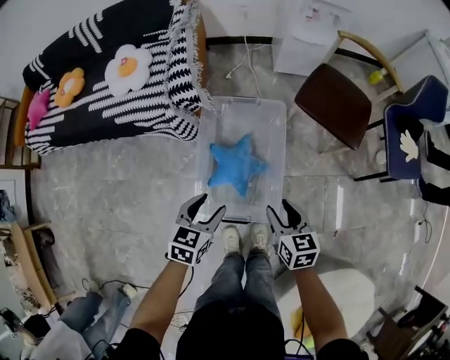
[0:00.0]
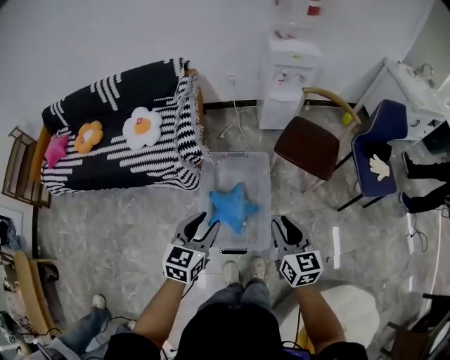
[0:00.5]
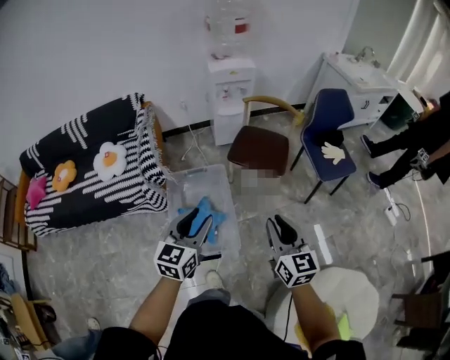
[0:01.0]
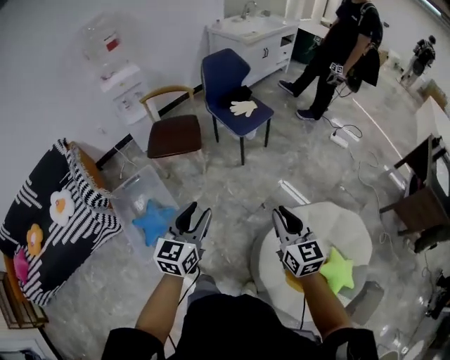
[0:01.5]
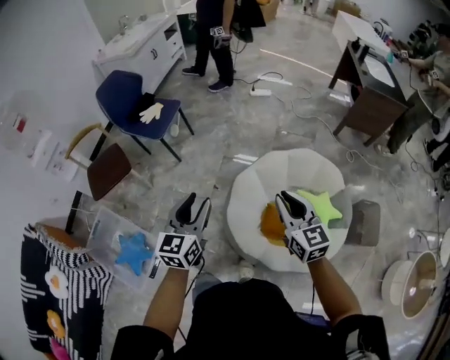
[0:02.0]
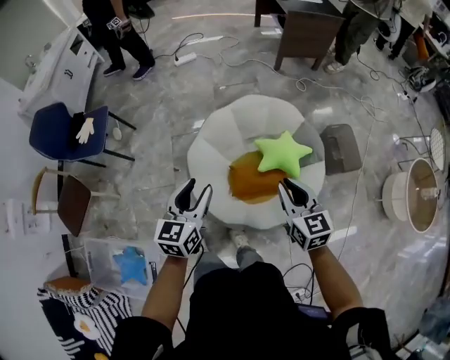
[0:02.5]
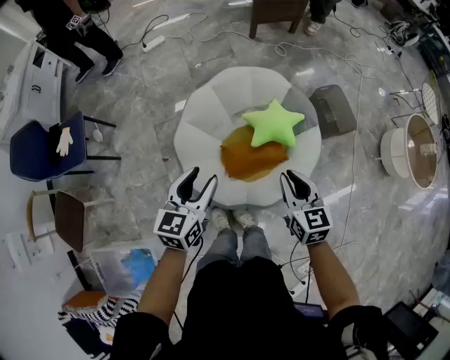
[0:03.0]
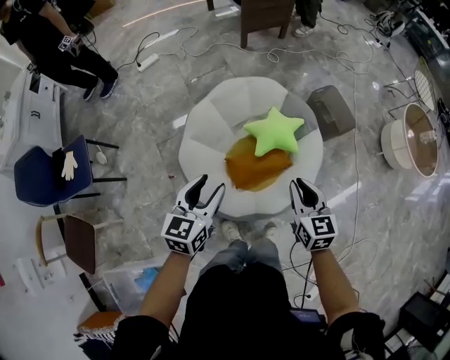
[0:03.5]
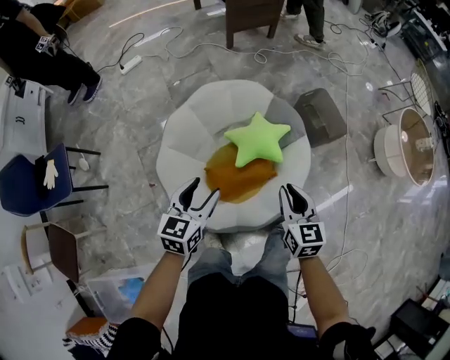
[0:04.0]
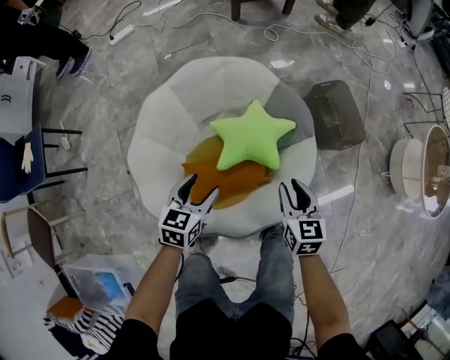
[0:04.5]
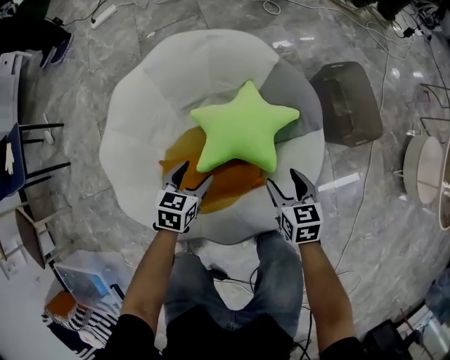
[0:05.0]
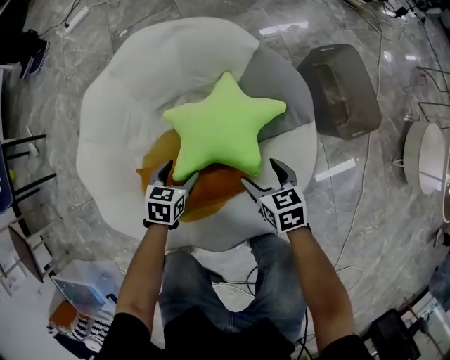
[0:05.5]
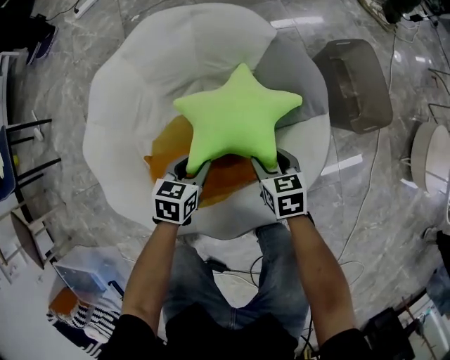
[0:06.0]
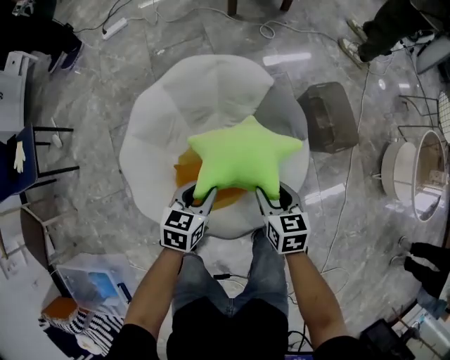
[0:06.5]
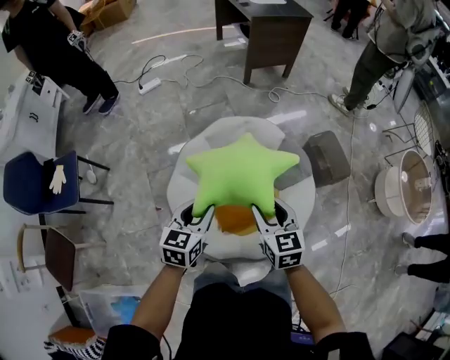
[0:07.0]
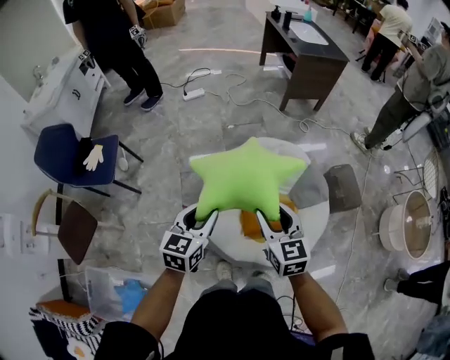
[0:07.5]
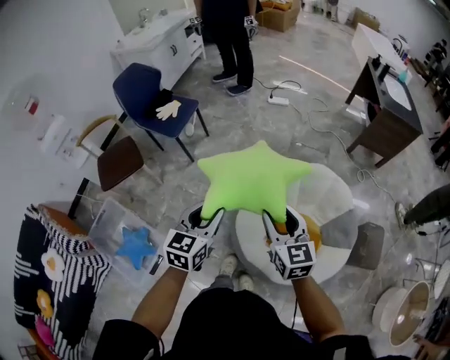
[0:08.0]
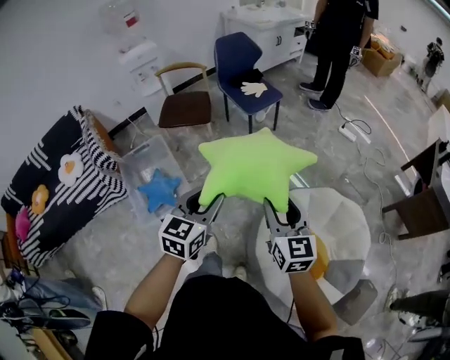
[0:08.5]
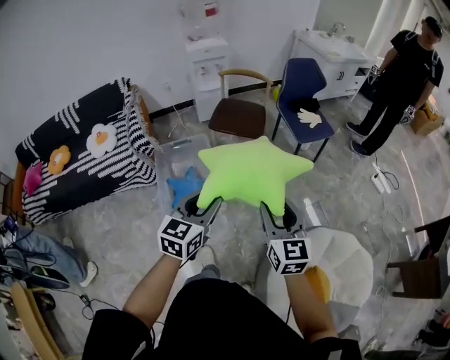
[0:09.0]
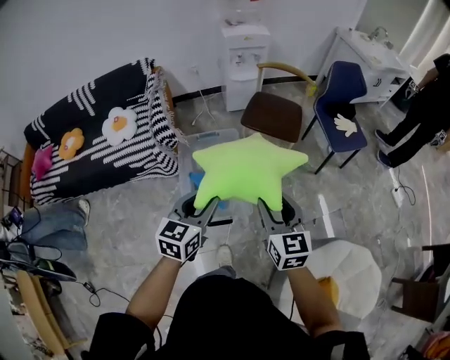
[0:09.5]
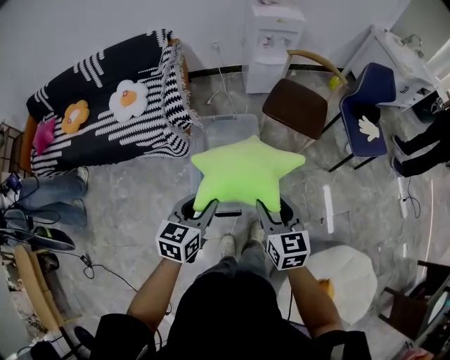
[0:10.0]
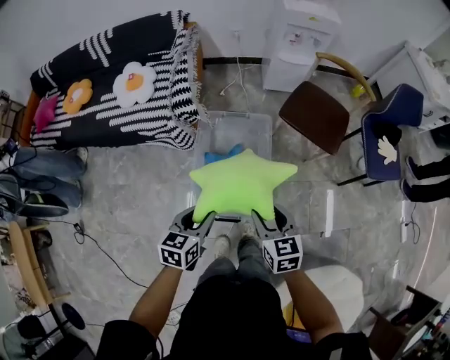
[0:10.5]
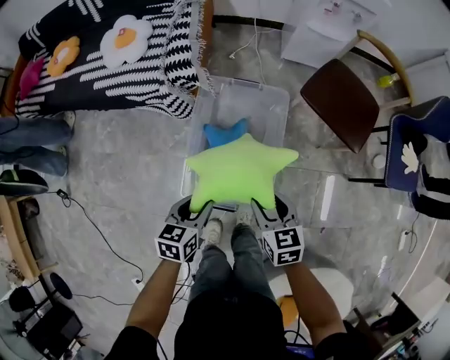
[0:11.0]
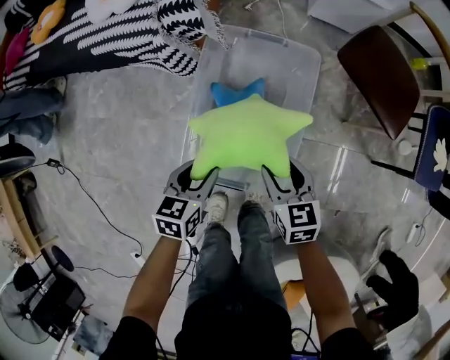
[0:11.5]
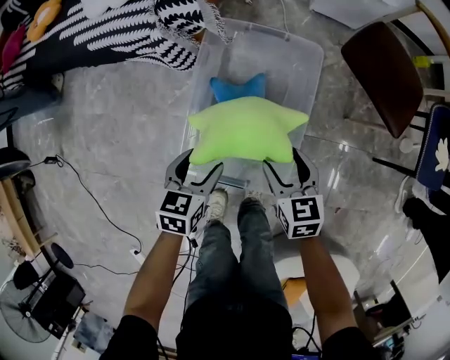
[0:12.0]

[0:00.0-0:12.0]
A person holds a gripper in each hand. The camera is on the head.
0:00.0 to 0:02.0: The pair of grippers is taken some 70 cm. The left gripper tips its fingers upward by roughly 30 degrees. Meanwhile the right gripper swivels roughly 70 degrees, and closes.
0:02.0 to 0:04.0: The right gripper changes place by some 35 cm, and swivels about 50 degrees; the left gripper ends up approximately 35 cm from where it was, and turns by approximately 50 degrees.
0:04.0 to 0:06.0: The two grippers go roughly 40 cm downward. The left gripper rotates roughly 30 degrees, while the right gripper changes its angle by roughly 30 degrees, and opens.
0:06.0 to 0:08.0: Both grippers are carried approximately 50 cm. Both grippers travel together upward, roughly 60 cm. The left gripper angles its fingers upward, by roughly 30 degrees. The right gripper tips its fingers upward by approximately 40 degrees.
0:08.0 to 0:10.0: Both grippers are carried about 60 cm. The right gripper swivels some 60 degrees. The left gripper rotates about 60 degrees.
0:10.0 to 0:12.0: The two grippers go some 35 cm downward. The right gripper changes its angle by roughly 30 degrees; the left gripper changes its angle by some 30 degrees, and opens.

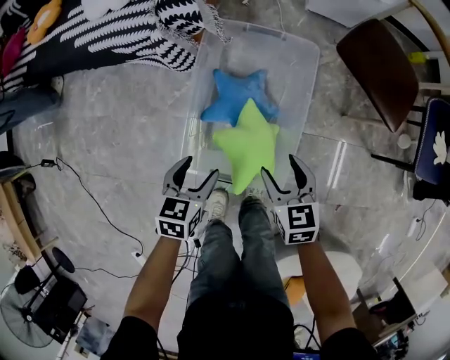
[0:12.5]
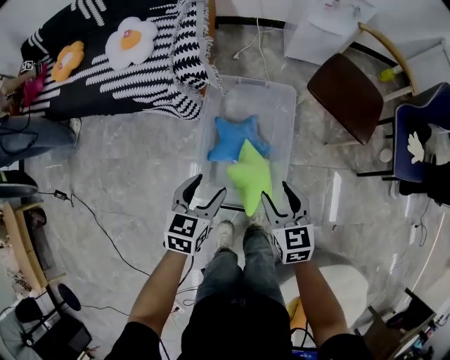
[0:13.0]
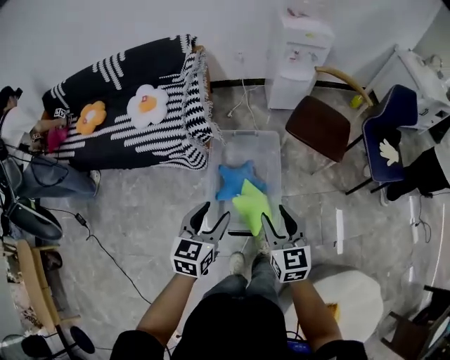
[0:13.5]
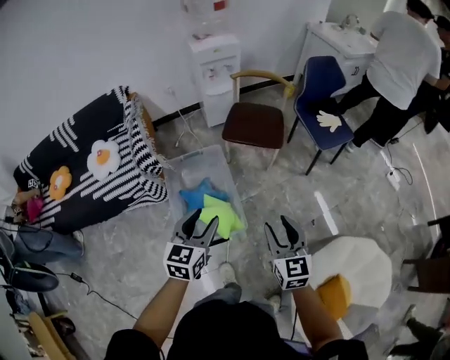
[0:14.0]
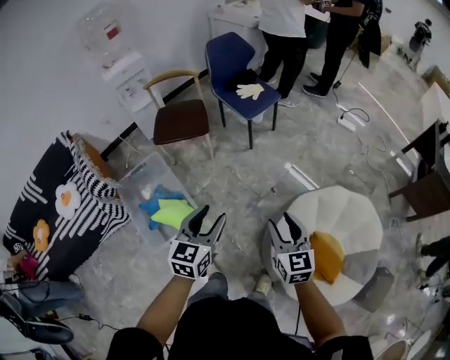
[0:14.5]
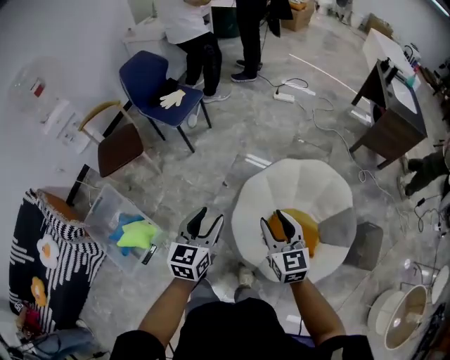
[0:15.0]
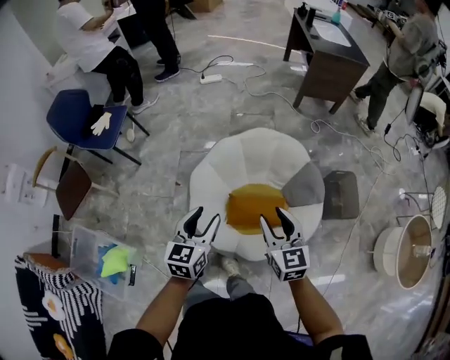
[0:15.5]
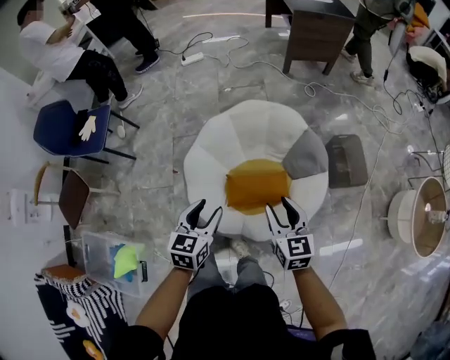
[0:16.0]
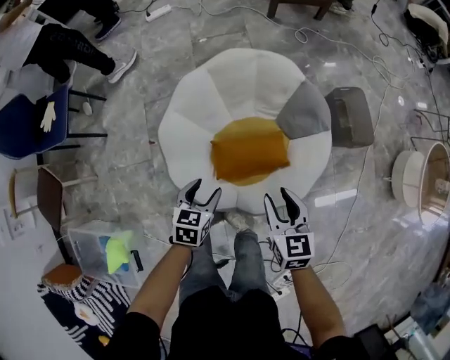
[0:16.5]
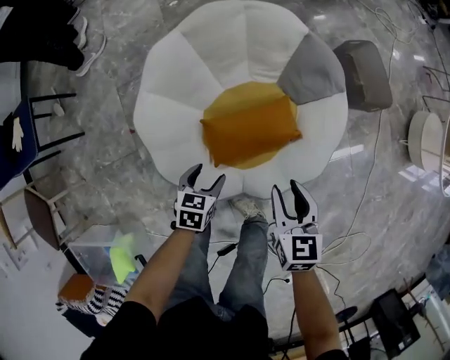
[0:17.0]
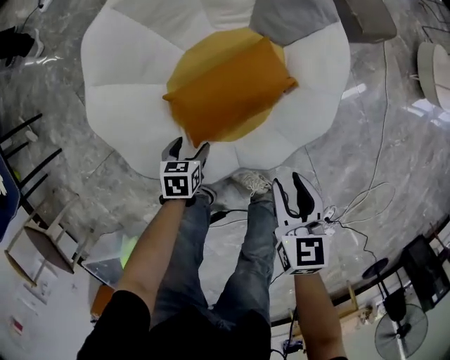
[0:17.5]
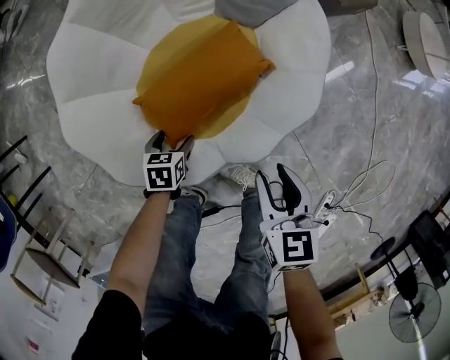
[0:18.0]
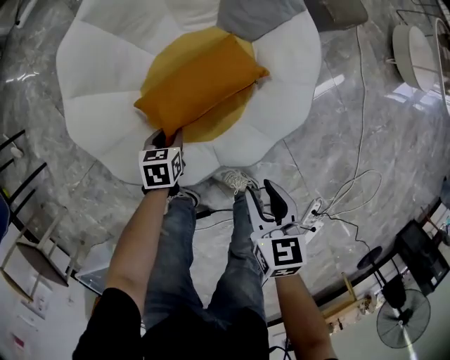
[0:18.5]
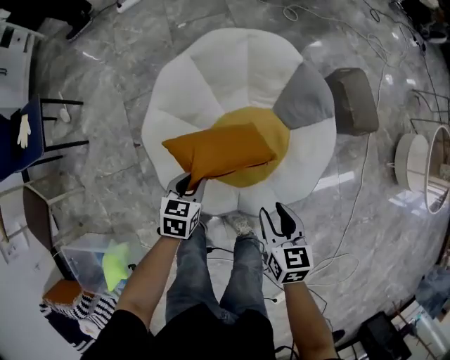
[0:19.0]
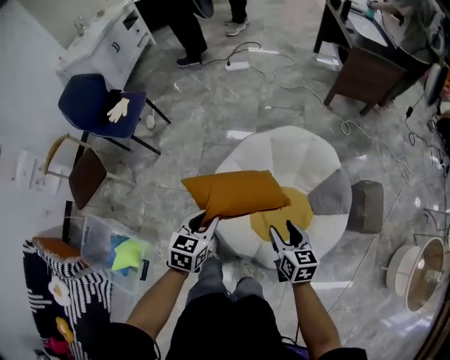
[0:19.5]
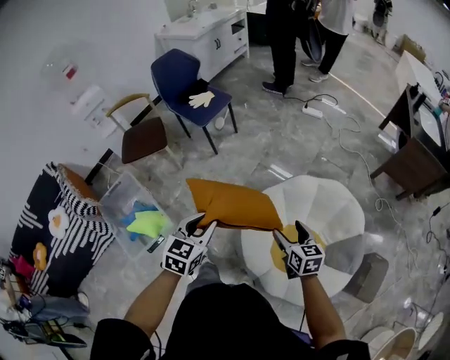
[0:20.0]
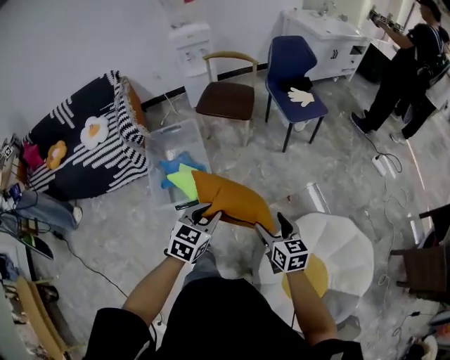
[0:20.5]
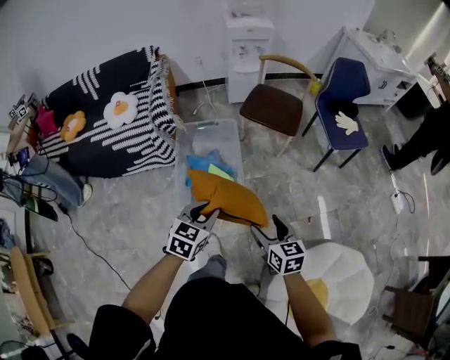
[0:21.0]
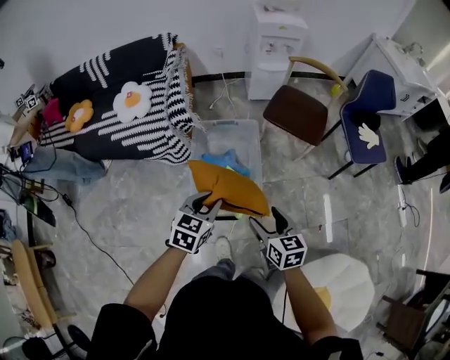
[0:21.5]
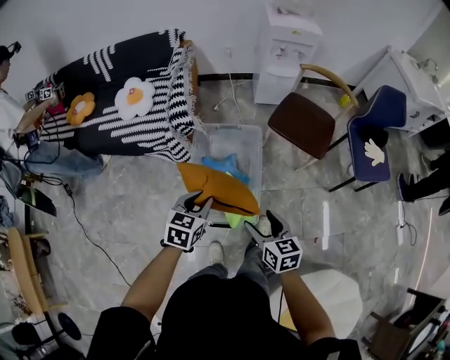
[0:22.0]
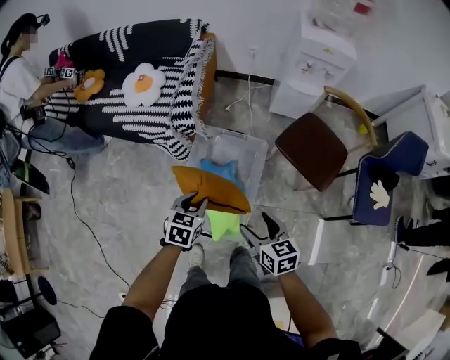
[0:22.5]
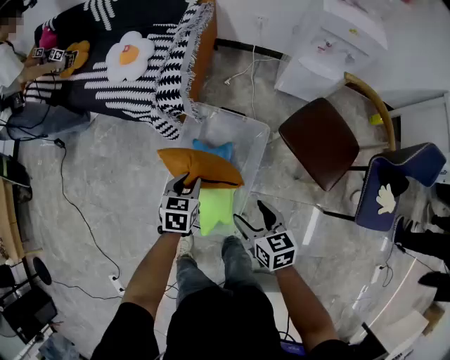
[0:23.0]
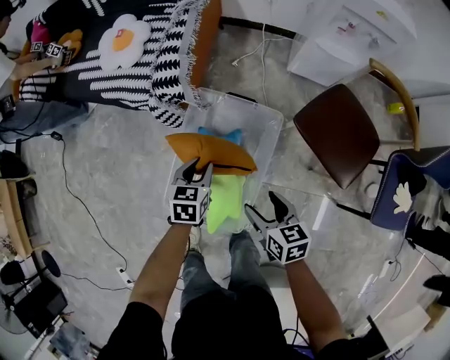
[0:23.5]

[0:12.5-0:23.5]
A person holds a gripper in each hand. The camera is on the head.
0:12.5 to 0:14.5: The pair of grippers is taken roughly 50 cm. The left gripper angles its fingers upward, by about 30 degrees. The right gripper changes its angle by roughly 60 degrees.
0:14.5 to 0:16.0: The two grippers travel together, some 50 cm. The left gripper rotates about 50 degrees, while the right gripper turns by roughly 50 degrees.
0:16.0 to 0:18.0: The right gripper shifts some 35 cm downward, and rotates approximately 50 degrees, while the left gripper shifts roughly 50 cm downward, points its fingers approximately 30 degrees further downward, and opens up.
0:18.0 to 0:20.0: The right gripper is displaced upward by approximately 30 cm, changes its angle by some 80 degrees, and opens. The left gripper shifts some 60 cm upward, tilts its fingers some 30 degrees upward, and closes its fingers.
0:20.0 to 0:21.5: The two grippers travel together, approximately 60 cm. The left gripper swivels roughly 50 degrees, while the right gripper rotates approximately 50 degrees.
0:21.5 to 0:23.5: The right gripper ends up roughly 30 cm from where it was, and swivels roughly 30 degrees; the left gripper shifts by about 35 cm, and changes its angle by about 40 degrees.

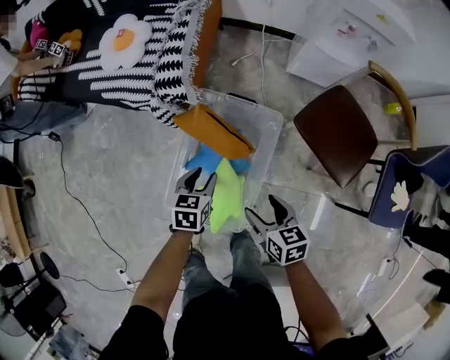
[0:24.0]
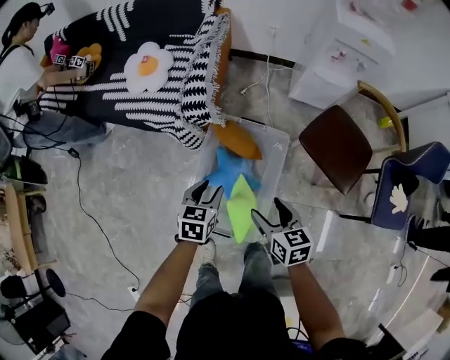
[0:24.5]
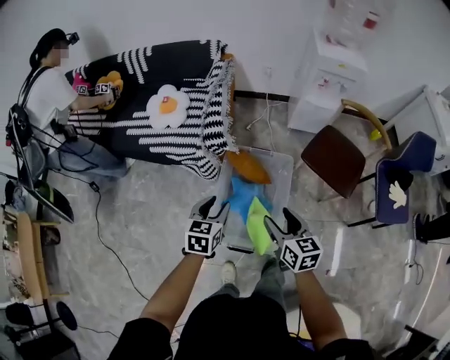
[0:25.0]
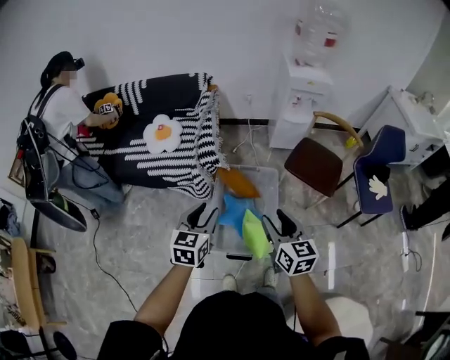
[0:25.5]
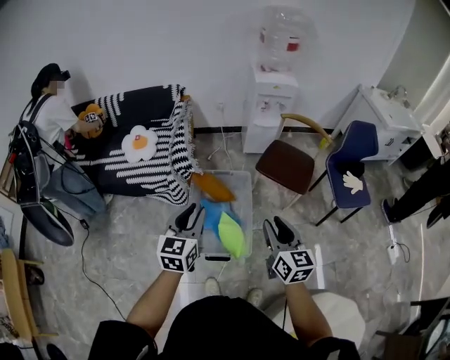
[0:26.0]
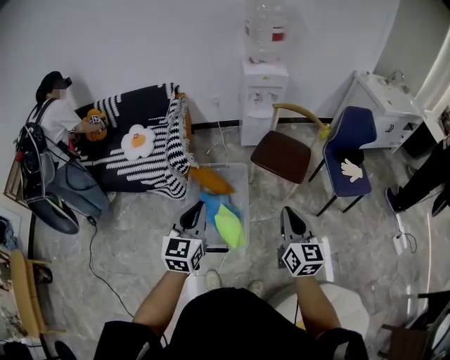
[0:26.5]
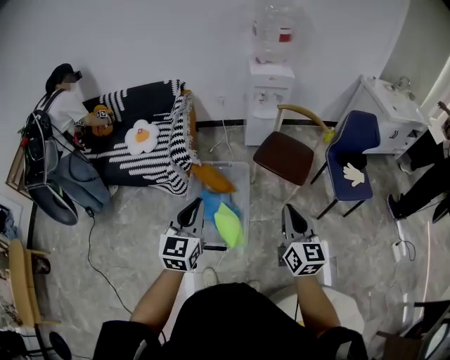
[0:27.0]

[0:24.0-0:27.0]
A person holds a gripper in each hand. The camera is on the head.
0:24.0 to 0:25.5: Both grippers move upward and to the left, about 35 cm. The left gripper turns by approximately 30 degrees. The right gripper rotates approximately 40 degrees, and closes its fingers.
0:25.5 to 0:27.0: The right gripper heads to the right, covering roughly 20 cm, and closes. The left gripper heads to the right, upward and backward, covering approximately 20 cm, and closes its fingers.
